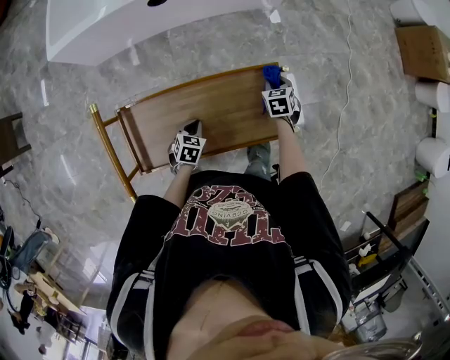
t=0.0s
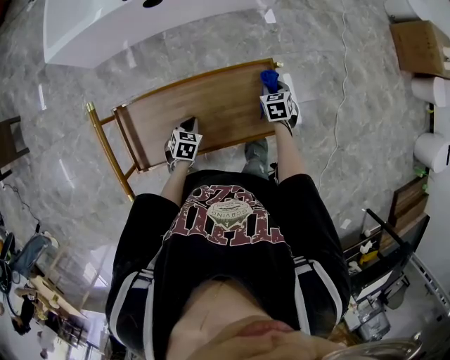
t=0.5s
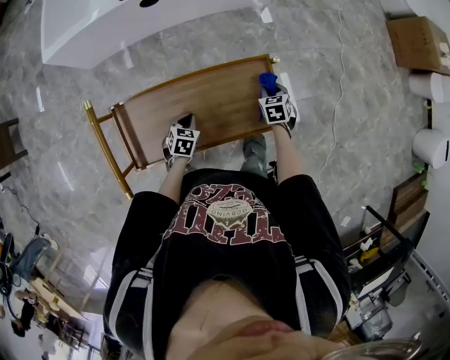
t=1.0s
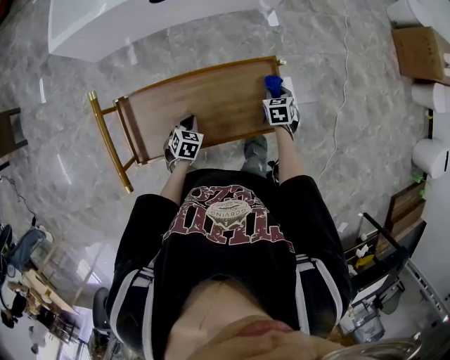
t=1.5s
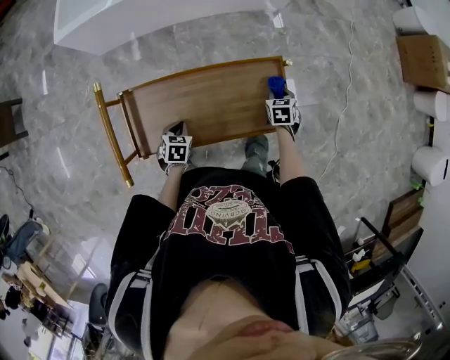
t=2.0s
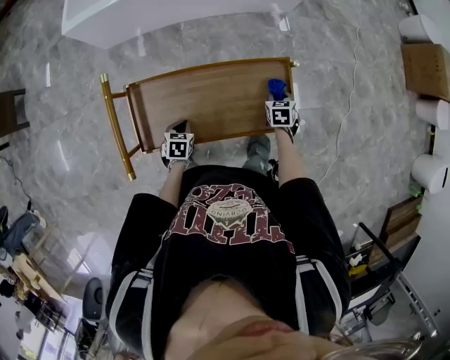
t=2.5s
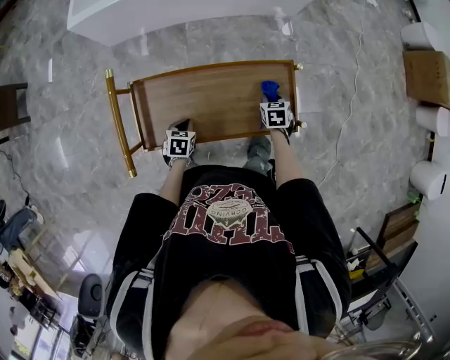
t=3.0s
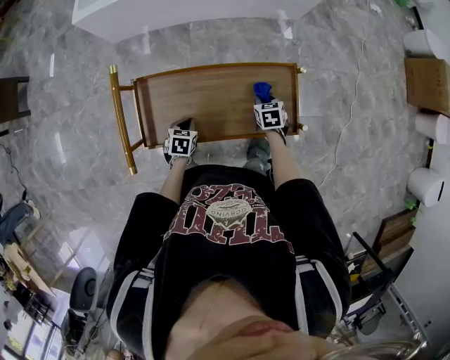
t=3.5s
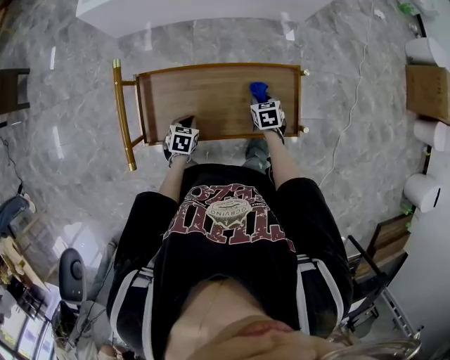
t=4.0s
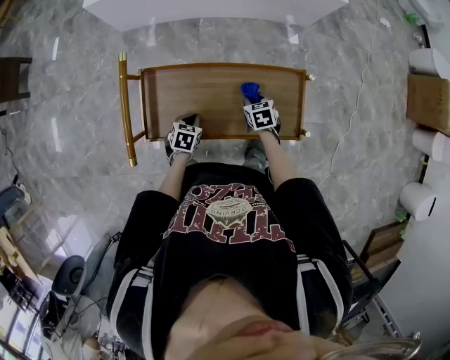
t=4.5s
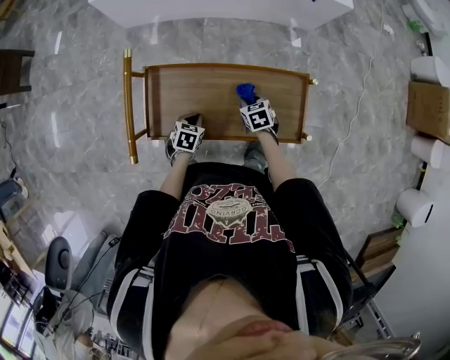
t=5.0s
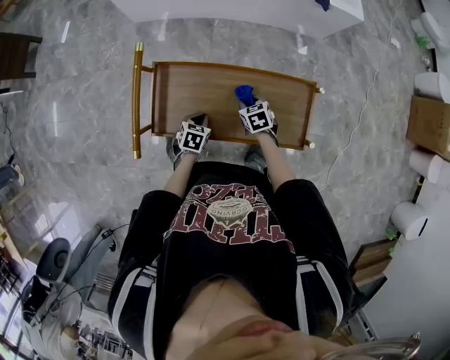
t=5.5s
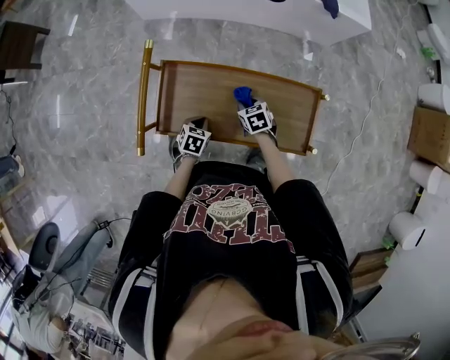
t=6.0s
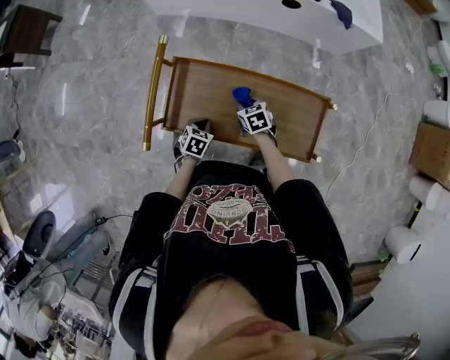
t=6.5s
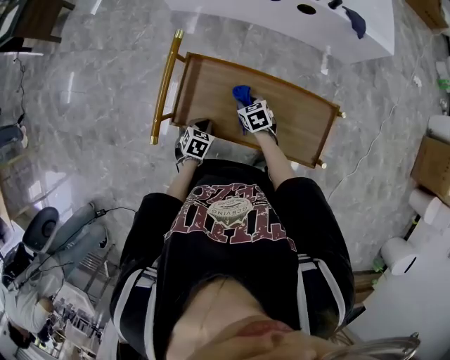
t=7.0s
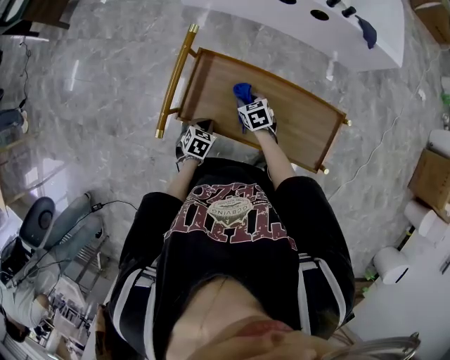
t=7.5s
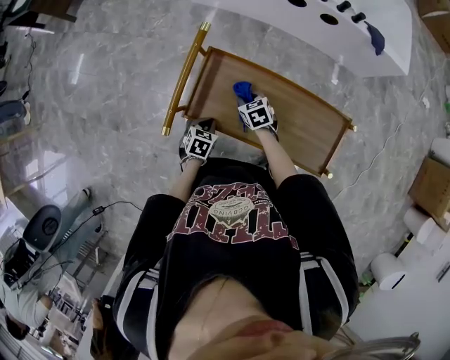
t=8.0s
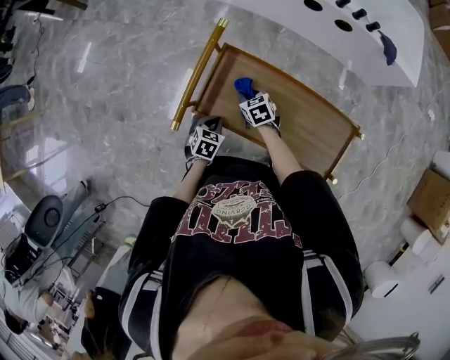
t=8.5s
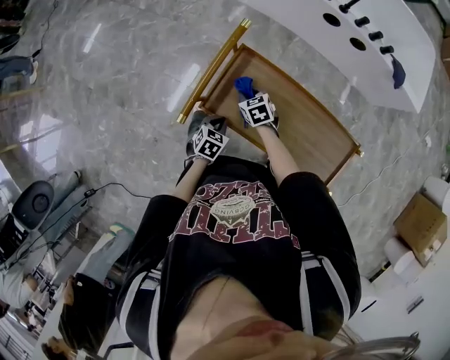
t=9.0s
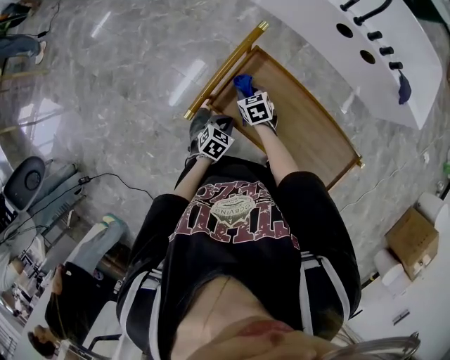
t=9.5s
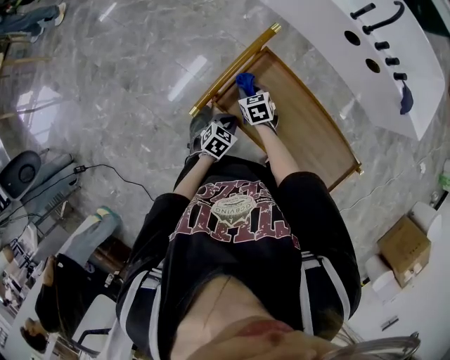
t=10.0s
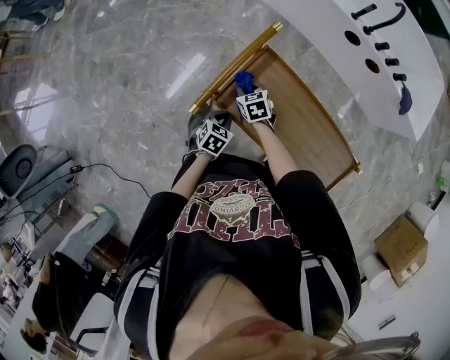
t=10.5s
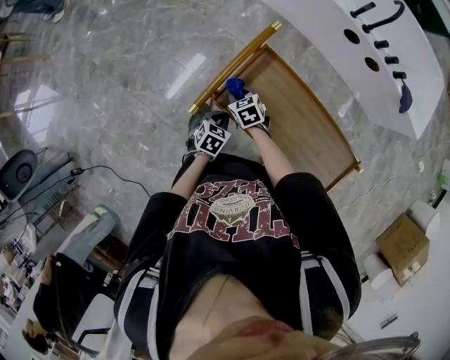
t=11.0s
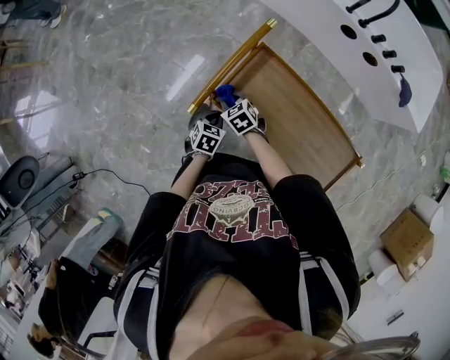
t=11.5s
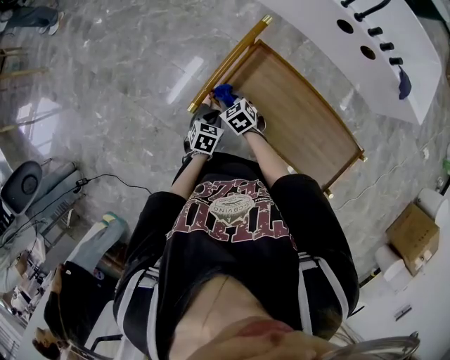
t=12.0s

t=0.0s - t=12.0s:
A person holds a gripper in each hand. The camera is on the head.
t=0.0s - t=2.0s: The left gripper shifts roughly 10 cm backward and to the left. The right gripper shifts approximately 5 cm backward.
t=2.0s - t=4.0s: The right gripper goes some 15 cm to the left.
t=4.0s - t=6.0s: The right gripper heads to the left, covering about 15 cm, and changes its angle by roughly 20 degrees.
t=6.0s - t=8.0s: The right gripper goes about 15 cm to the left; the left gripper moves to the left, approximately 10 cm.
t=8.0s - t=10.0s: The right gripper goes about 15 cm to the left.
t=10.0s - t=12.0s: The right gripper shifts approximately 10 cm backward and to the left, while the left gripper shifts approximately 5 cm to the left.

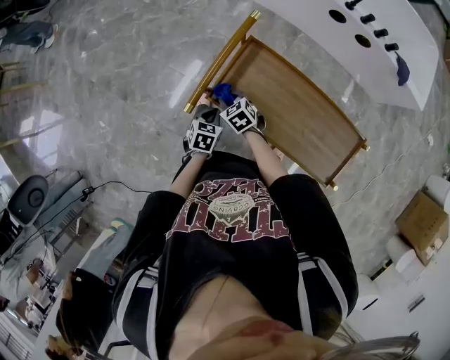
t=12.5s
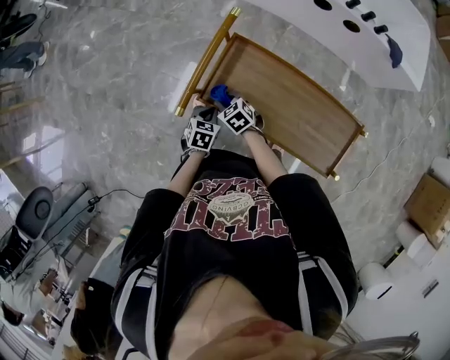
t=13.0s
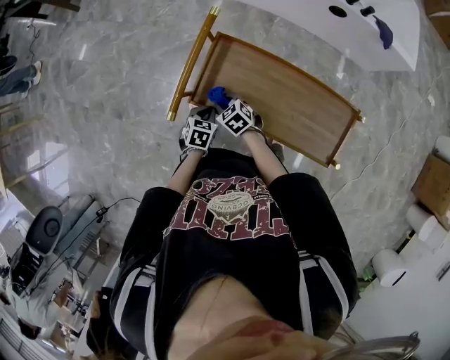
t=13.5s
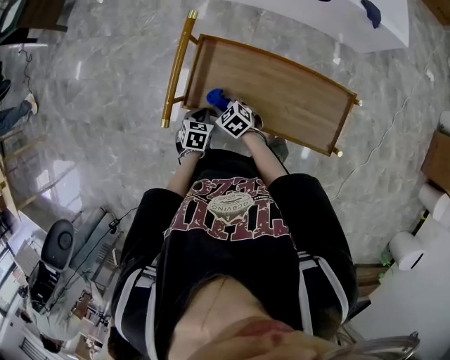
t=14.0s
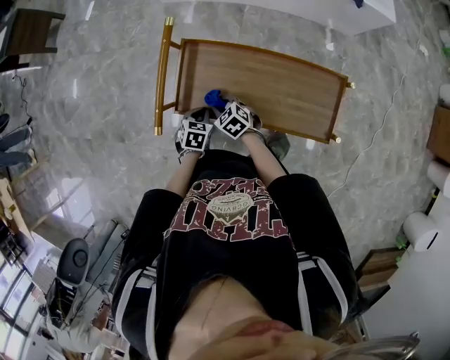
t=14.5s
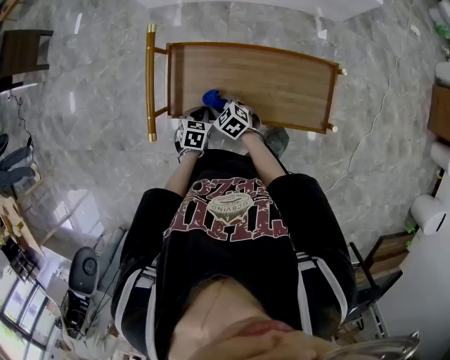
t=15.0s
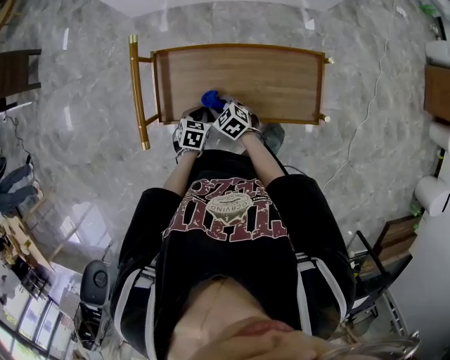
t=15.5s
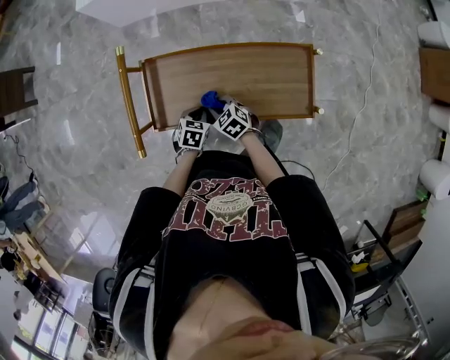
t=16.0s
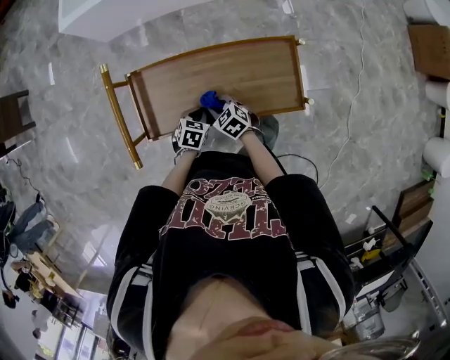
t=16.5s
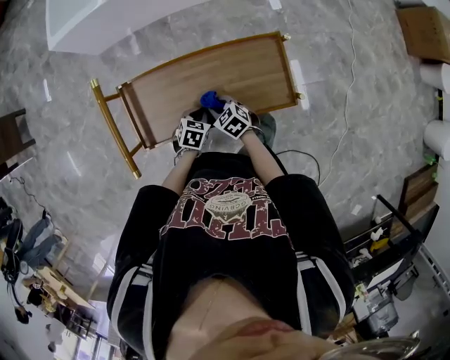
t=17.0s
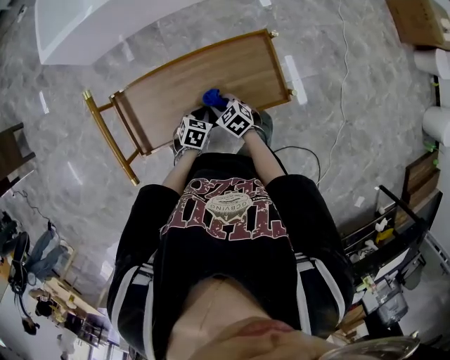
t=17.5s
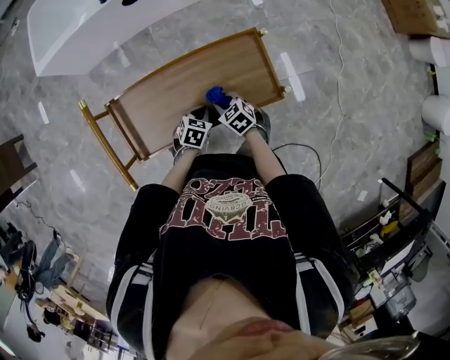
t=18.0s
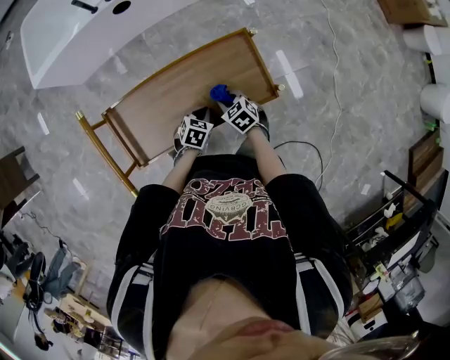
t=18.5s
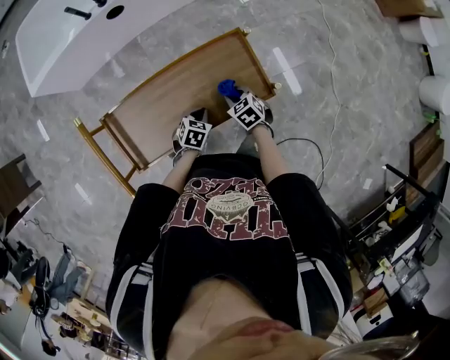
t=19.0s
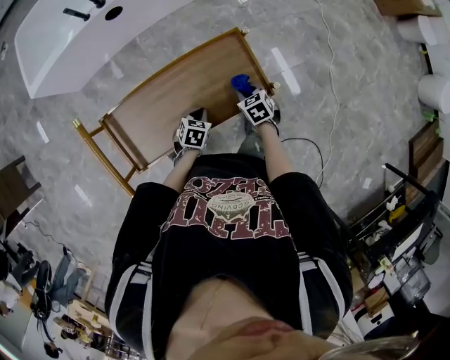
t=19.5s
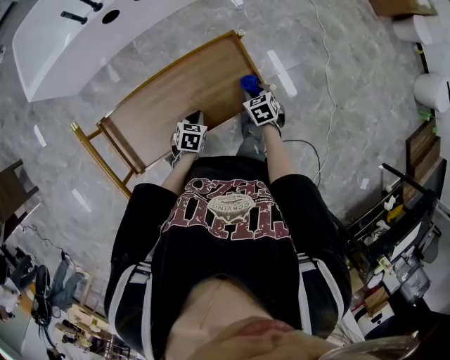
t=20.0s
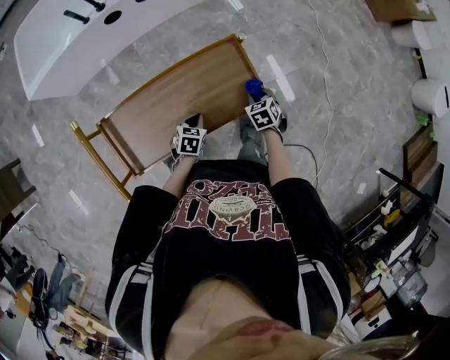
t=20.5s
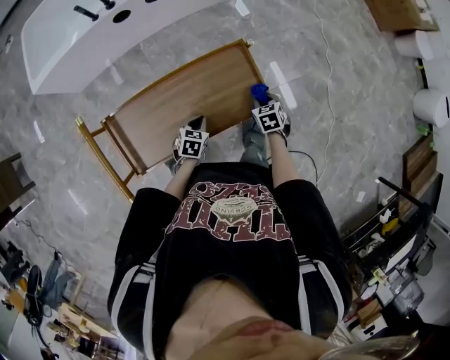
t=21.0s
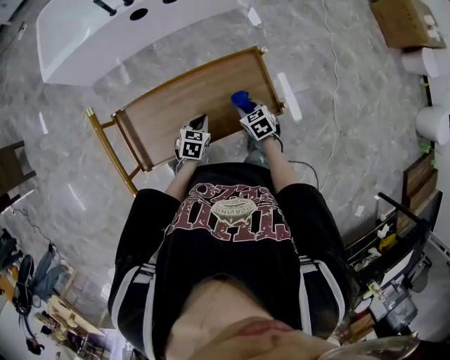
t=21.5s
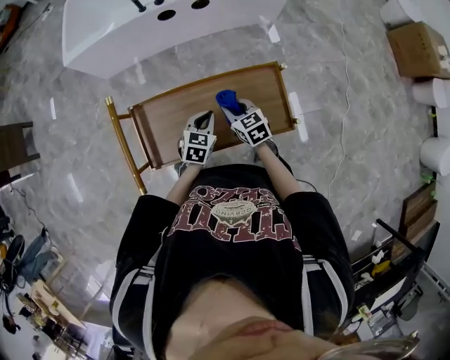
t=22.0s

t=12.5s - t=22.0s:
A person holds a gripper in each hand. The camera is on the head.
t=12.5s - t=14.5s: Both grippers travel together to the right, roughly 10 cm. The left gripper turns by about 20 degrees.
t=14.5s - t=16.5s: Both grippers travel together to the right, approximately 15 cm. The left gripper changes its angle by about 20 degrees.
t=16.5s - t=18.0s: Both grippers move to the right, roughly 10 cm.
t=18.0s - t=20.0s: The right gripper moves to the right, about 20 cm, and changes its angle by some 30 degrees.
t=20.0s - t=22.0s: The left gripper moves upward, about 10 cm, and rotates some 20 degrees; the right gripper ends up about 25 cm from where it was, and turns by approximately 30 degrees.

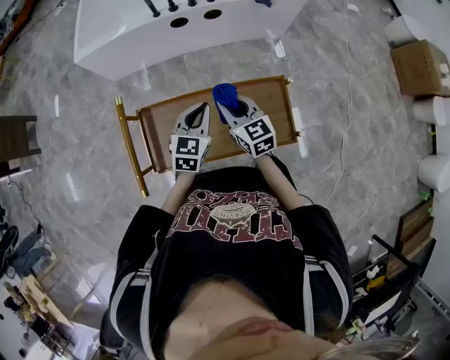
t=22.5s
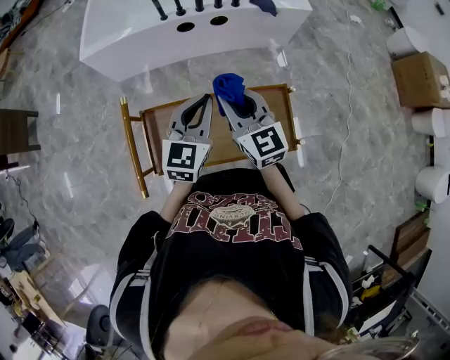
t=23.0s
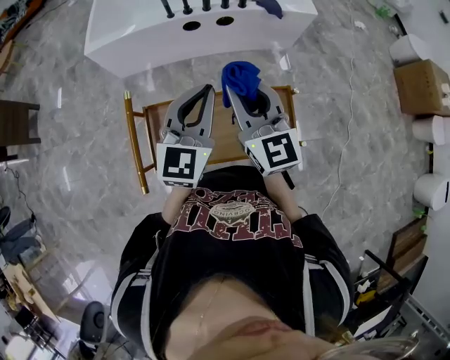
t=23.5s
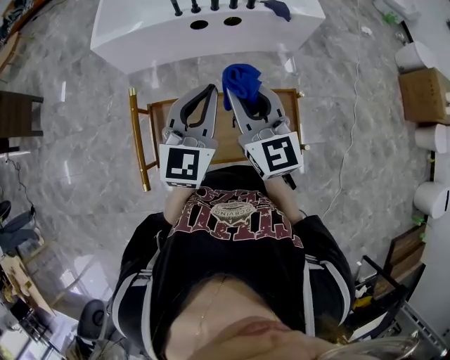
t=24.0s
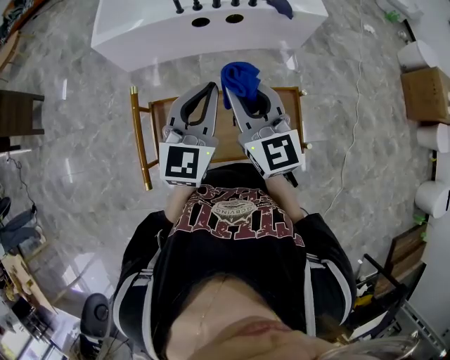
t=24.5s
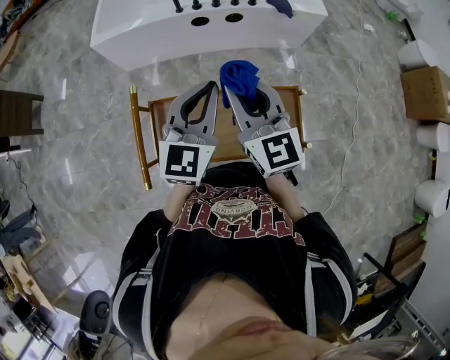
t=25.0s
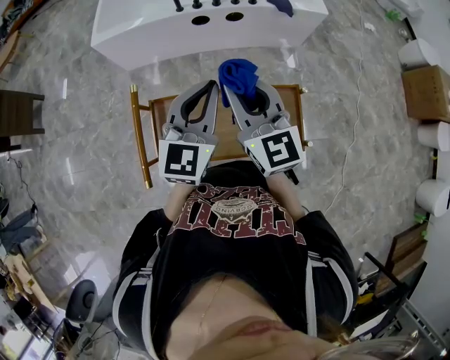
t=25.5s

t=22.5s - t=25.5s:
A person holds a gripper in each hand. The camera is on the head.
t=22.5s - t=24.0s: Both grippers travel together upward, about 20 cm. The left gripper changes its angle by about 20 degrees. The right gripper rotates some 20 degrees.
t=24.0s - t=25.5s: Neither gripper changes place.

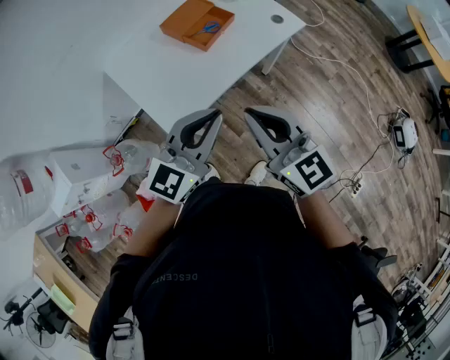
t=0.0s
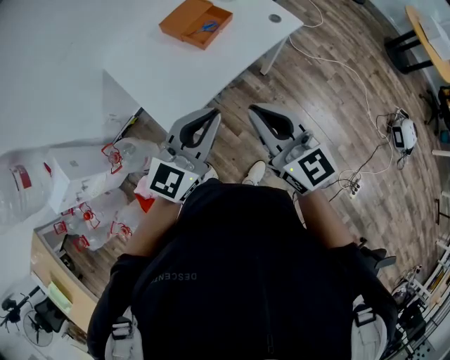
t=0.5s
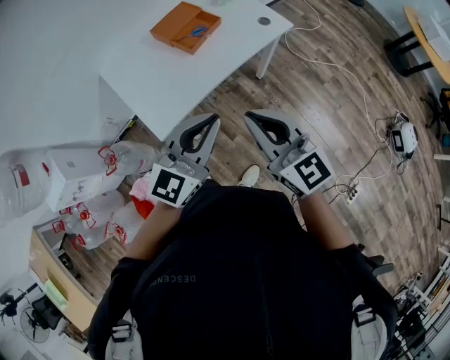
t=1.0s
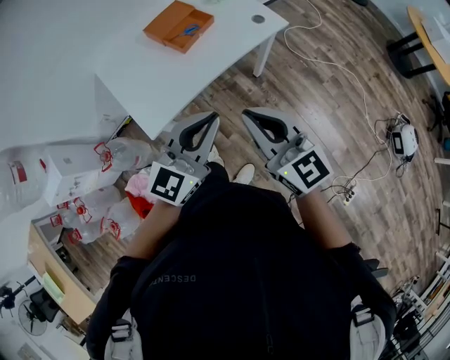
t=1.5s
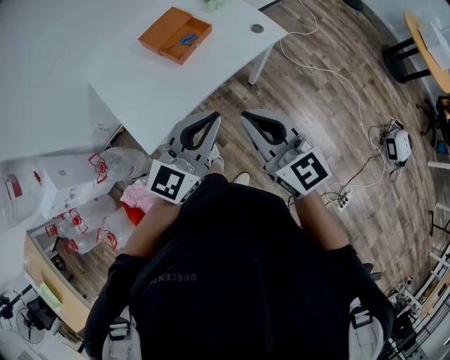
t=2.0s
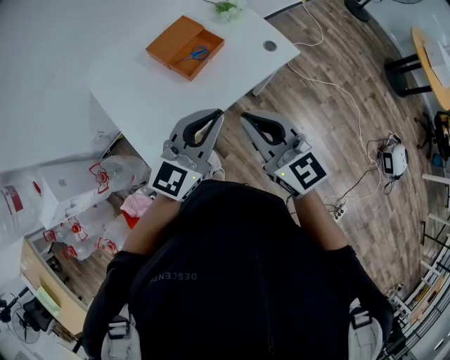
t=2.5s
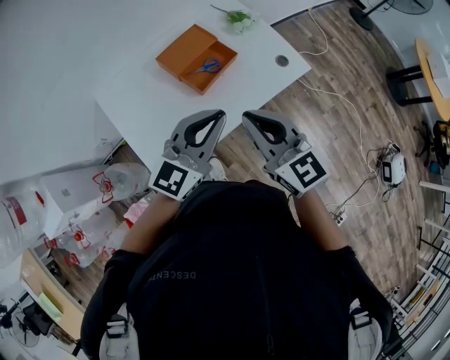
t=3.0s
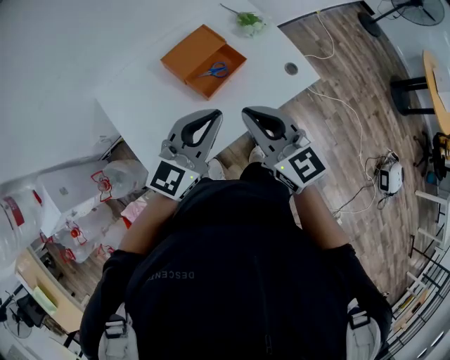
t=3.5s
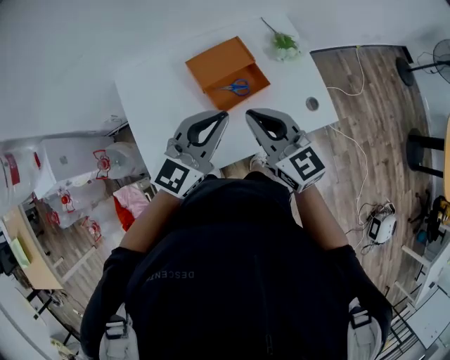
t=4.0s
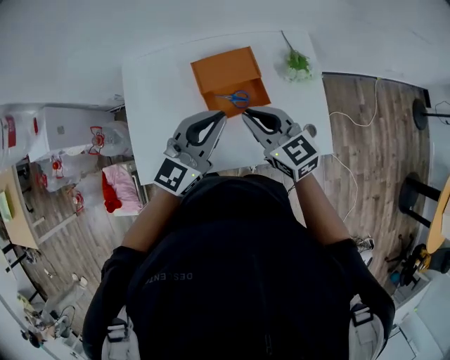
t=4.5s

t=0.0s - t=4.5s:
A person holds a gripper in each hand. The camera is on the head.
t=0.0s - t=2.0s: The two grippers go about 10 cm to the right.
t=2.0s - t=4.5s: The right gripper changes place by some 40 cm, and changes its angle by some 40 degrees; the left gripper ends up approximately 40 cm from where it was, and rotates some 30 degrees.
